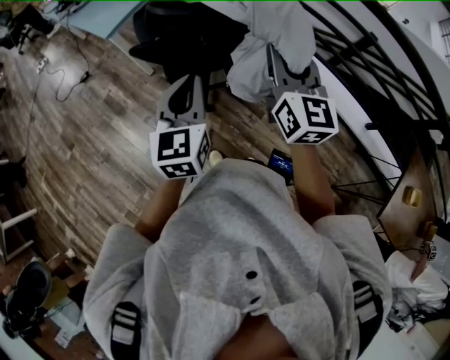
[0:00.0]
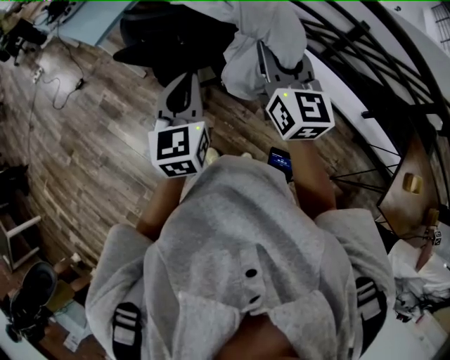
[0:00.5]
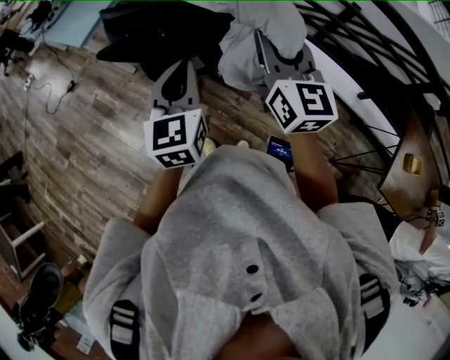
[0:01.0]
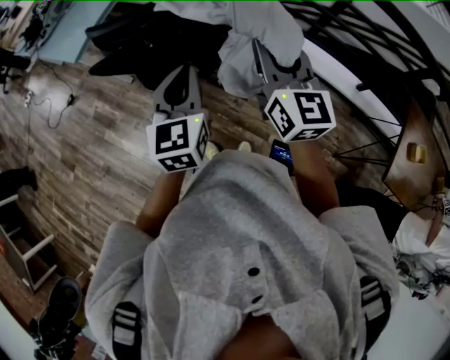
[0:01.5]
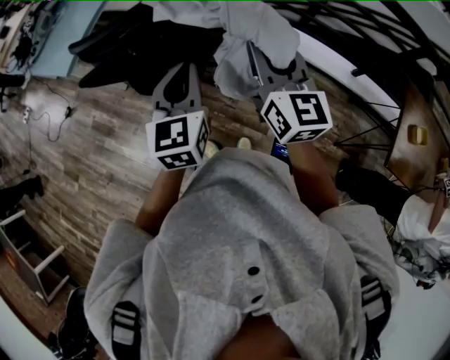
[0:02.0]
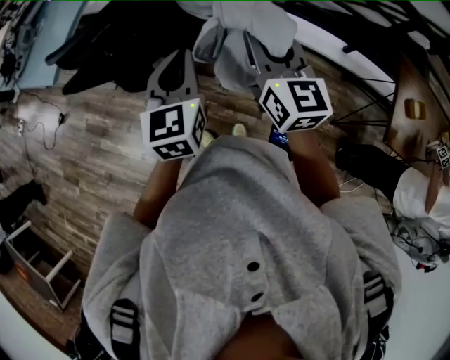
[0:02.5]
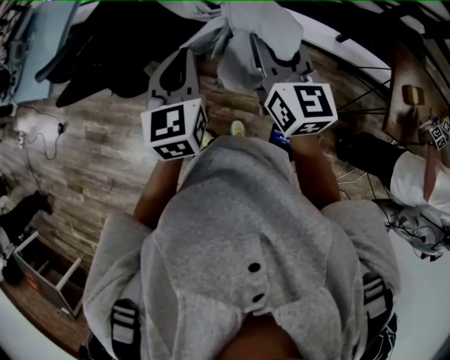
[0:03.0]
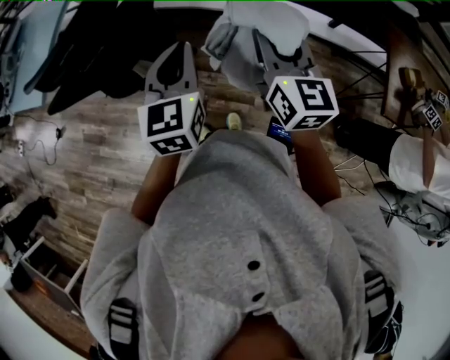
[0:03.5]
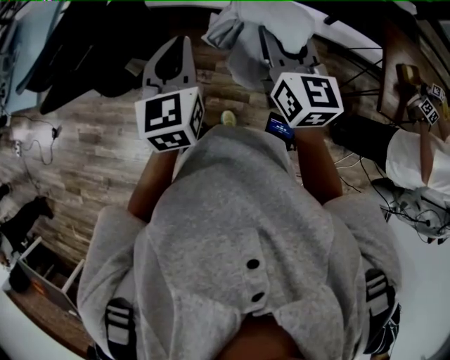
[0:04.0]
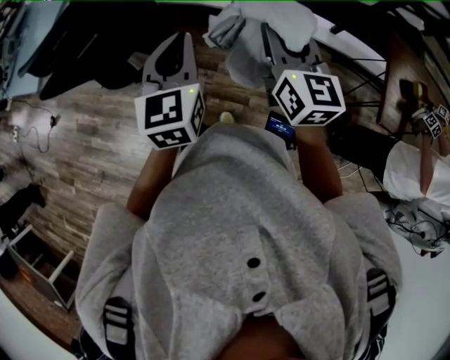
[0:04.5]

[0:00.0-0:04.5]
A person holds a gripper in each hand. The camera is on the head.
0:00.0 to 0:02.0: The right gripper goes about 15 cm to the right and backward, while the left gripper is displaced to the right by approximately 15 cm.
0:02.0 to 0:04.5: The two grippers go about 15 cm to the right.

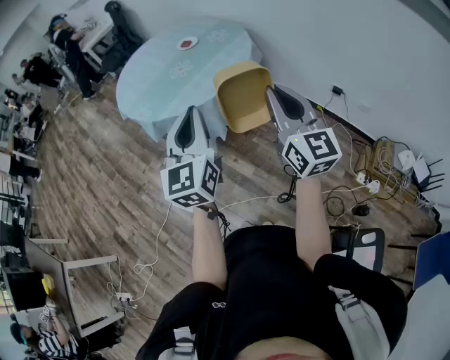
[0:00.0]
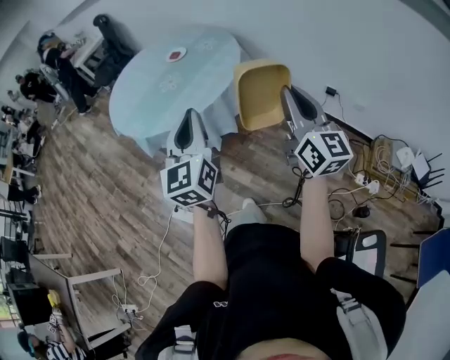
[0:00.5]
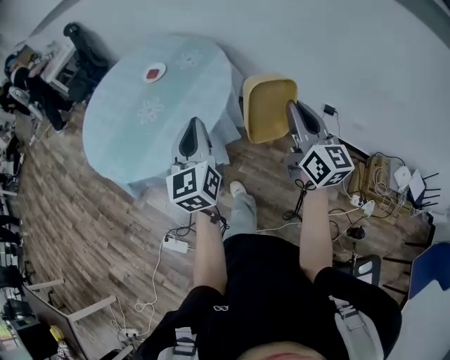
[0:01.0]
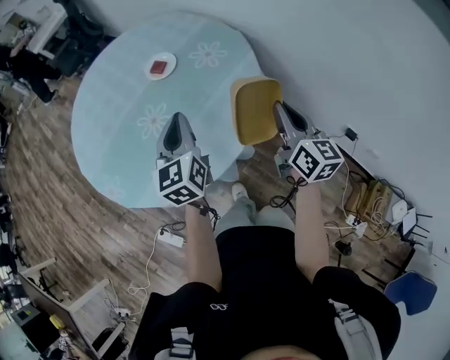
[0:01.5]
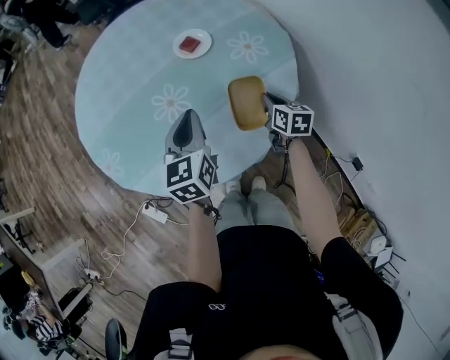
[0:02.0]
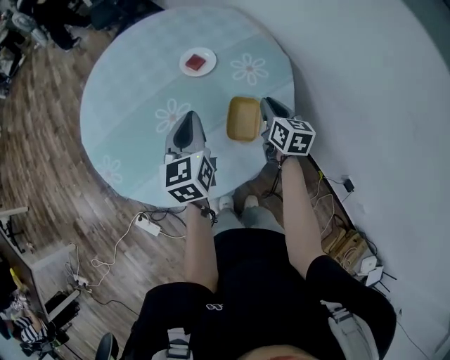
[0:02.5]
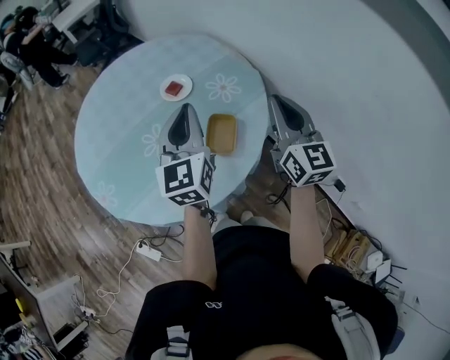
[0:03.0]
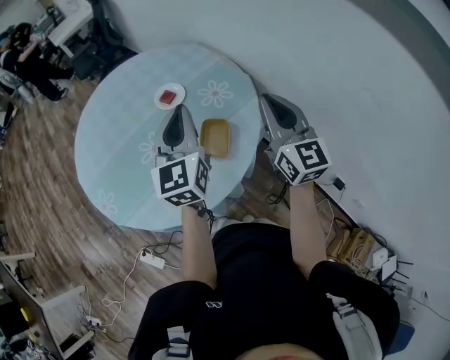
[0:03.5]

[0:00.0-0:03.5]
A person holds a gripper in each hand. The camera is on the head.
0:00.0 to 0:02.0: The two grippers travel together, forward, about 70 cm. The right gripper heads downward, covering approximately 35 cm, and points its fingers some 50 degrees further downward. The left gripper swivels some 30 degrees.
0:02.0 to 0:03.5: The left gripper is displaced upward and to the right by some 20 cm, and changes its angle by some 20 degrees. Meanwhile the right gripper shifts roughly 30 cm upward, and angles its fingers upward, by approximately 40 degrees.

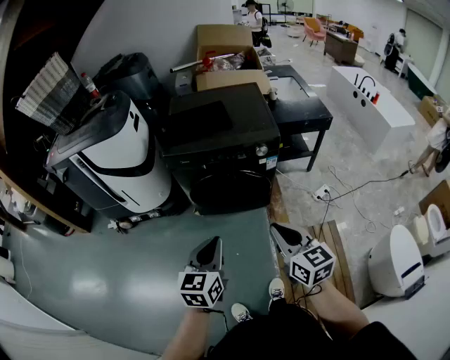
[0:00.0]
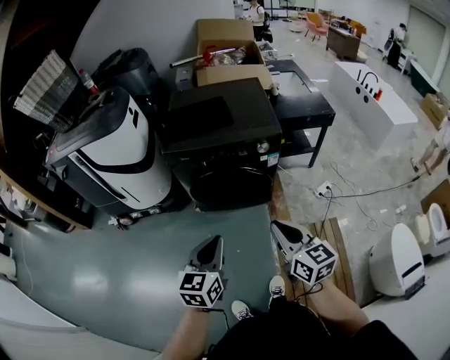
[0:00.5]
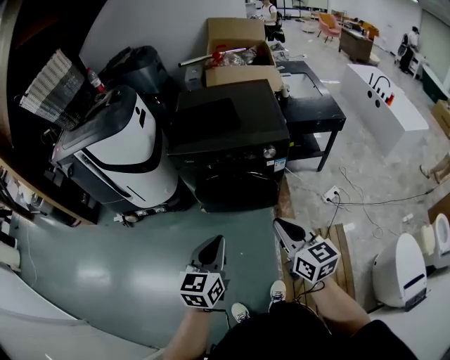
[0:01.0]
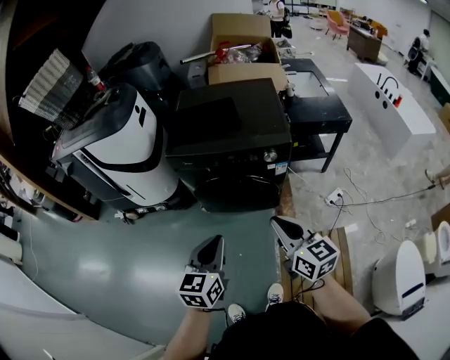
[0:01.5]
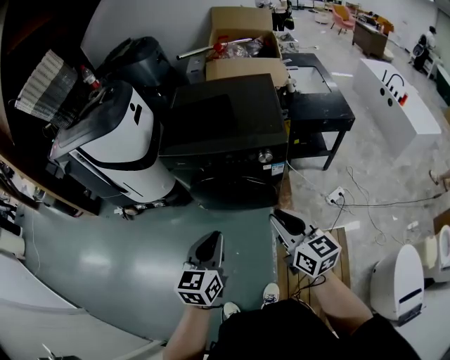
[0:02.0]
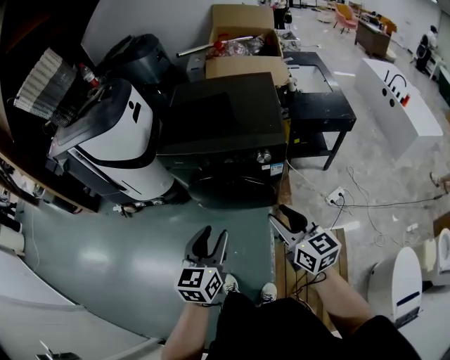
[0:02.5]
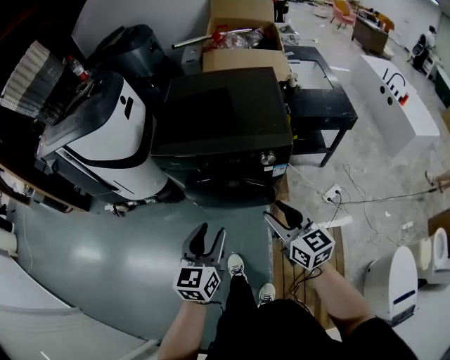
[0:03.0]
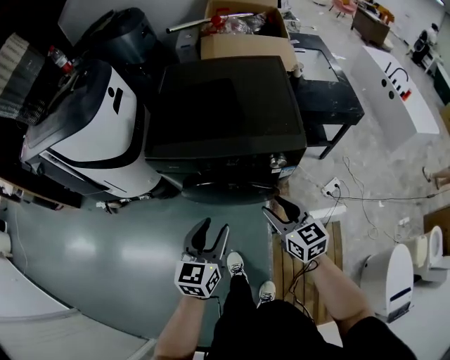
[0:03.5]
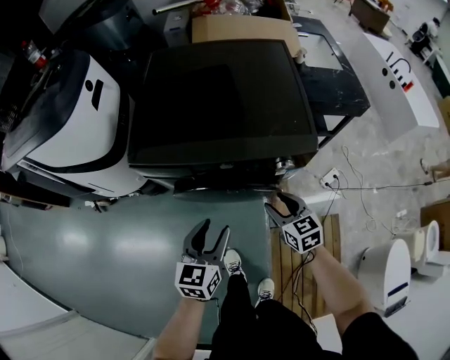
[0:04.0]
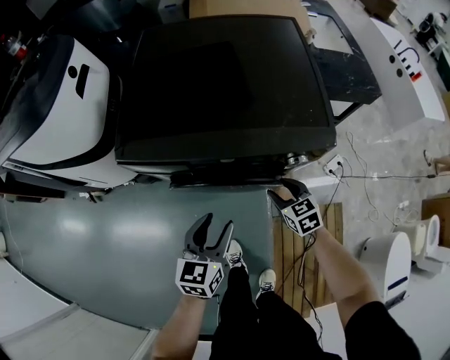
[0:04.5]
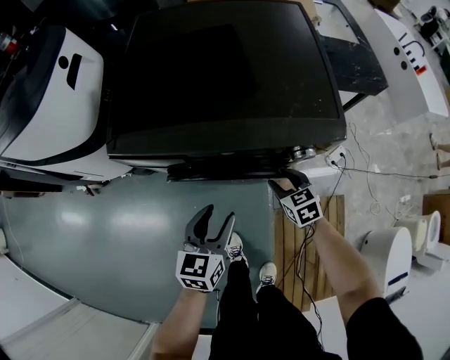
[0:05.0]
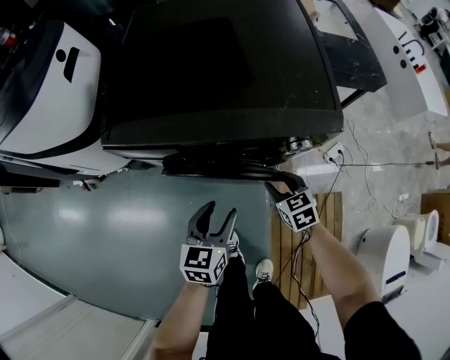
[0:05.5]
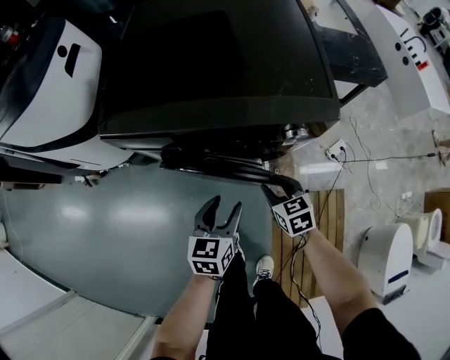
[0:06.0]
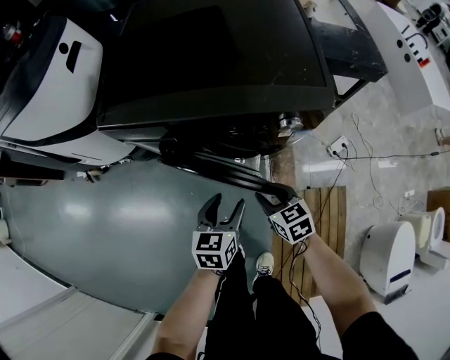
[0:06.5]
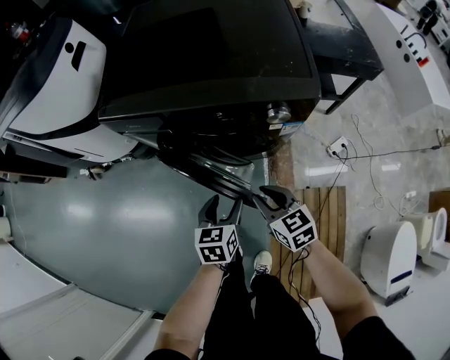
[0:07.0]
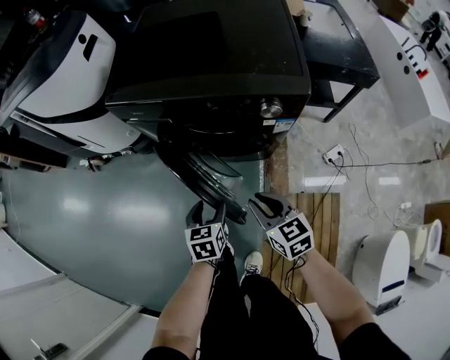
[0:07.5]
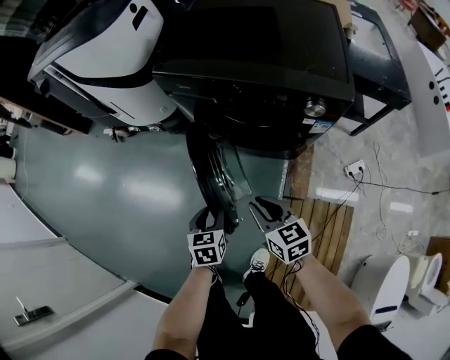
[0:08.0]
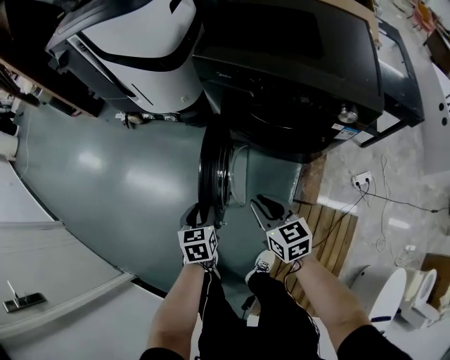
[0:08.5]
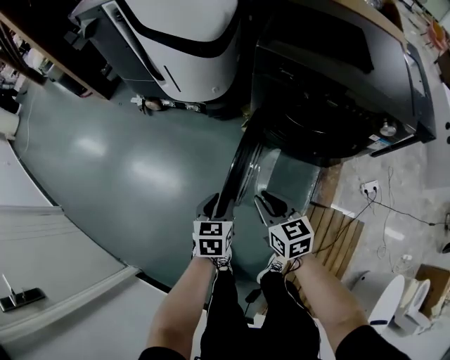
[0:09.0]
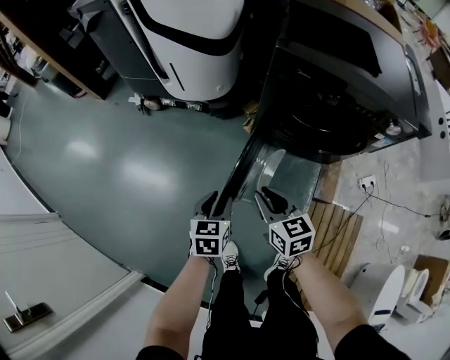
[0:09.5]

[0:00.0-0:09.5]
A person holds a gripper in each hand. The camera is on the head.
0:00.0 to 0:02.0: Both grippers move forward and to the right, some 15 cm.
0:02.0 to 0:04.0: The left gripper is displaced forward and downward by some 25 cm, and opens up. The right gripper shifts about 35 cm downward and forward, swivels about 30 degrees, and opens its fingers.
0:04.0 to 0:05.5: The two grippers go approximately 10 cm downward.
0:05.5 to 0:07.5: The left gripper heads backward and downward, covering some 15 cm, and changes its angle by some 20 degrees, while the right gripper moves backward and upward, roughly 20 cm, and closes.
0:07.5 to 0:09.5: Both grippers travel together to the left, approximately 40 cm. The left gripper closes.

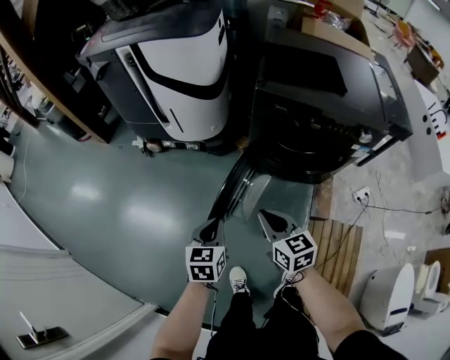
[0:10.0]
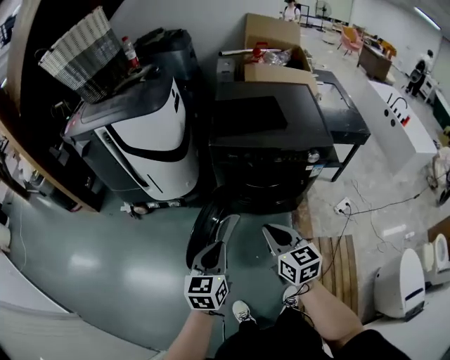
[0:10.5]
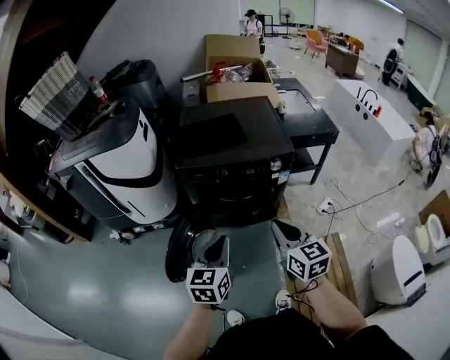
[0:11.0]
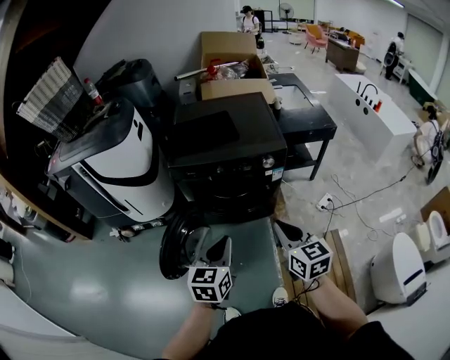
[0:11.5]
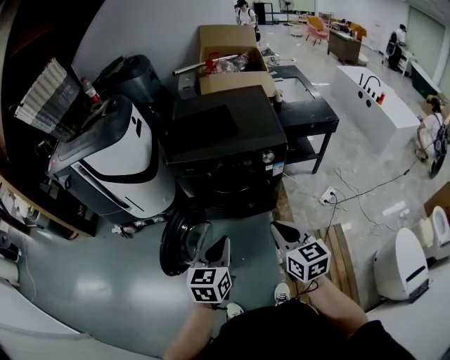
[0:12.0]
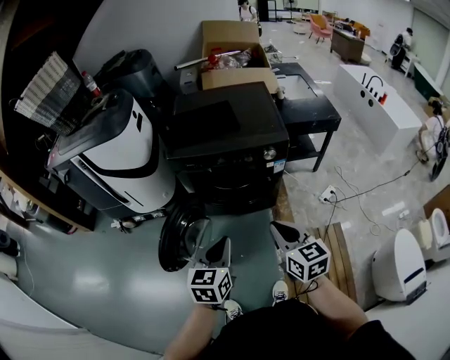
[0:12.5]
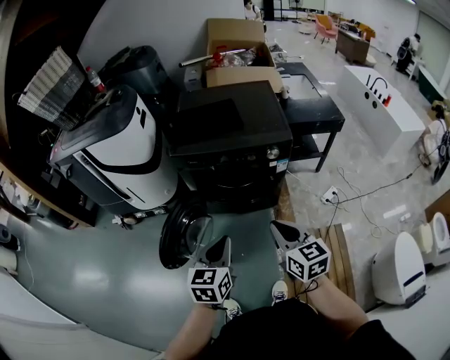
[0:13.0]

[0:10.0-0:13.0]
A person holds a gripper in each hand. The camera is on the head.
0:10.0 to 0:11.5: Both grippers move to the right and upward, about 35 cm. The right gripper turns by approximately 30 degrees, while the left gripper changes its angle by about 30 degrees.
0:11.5 to 0:13.0: There are only small adjustments of the grippers.

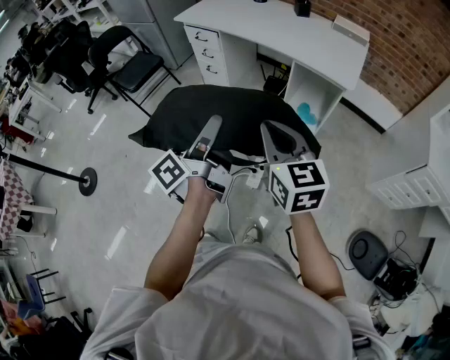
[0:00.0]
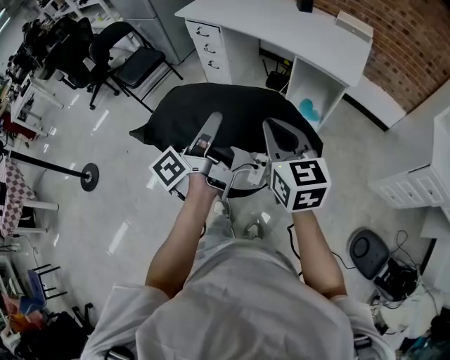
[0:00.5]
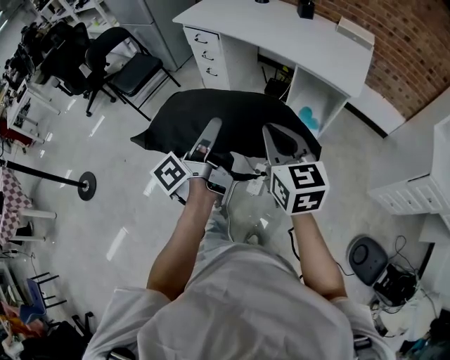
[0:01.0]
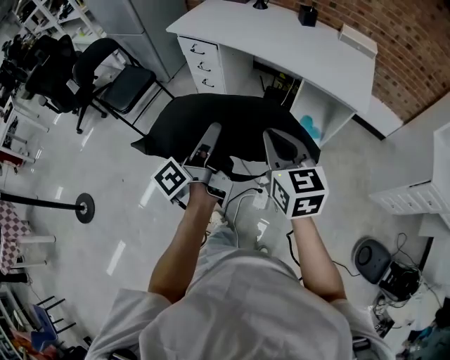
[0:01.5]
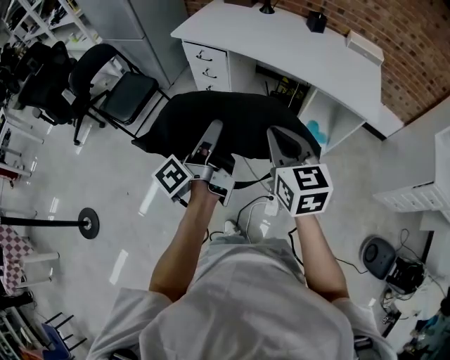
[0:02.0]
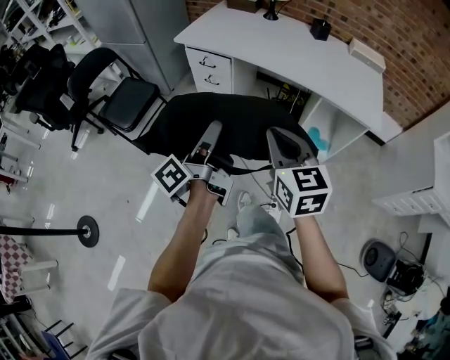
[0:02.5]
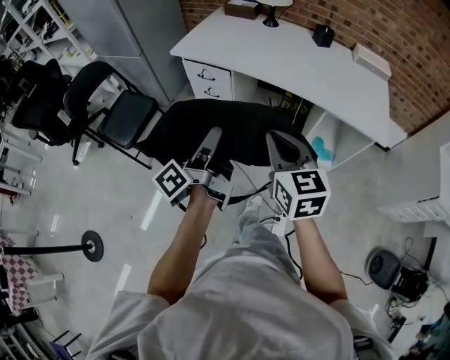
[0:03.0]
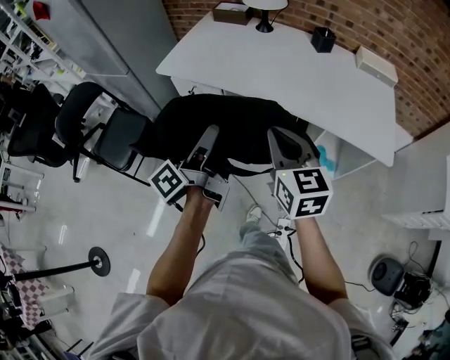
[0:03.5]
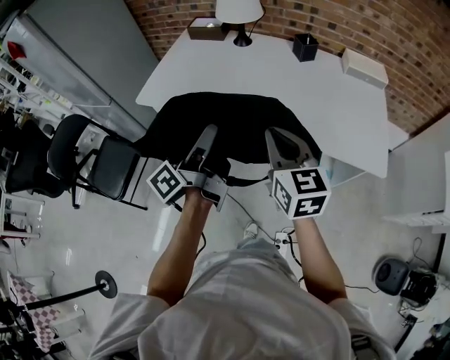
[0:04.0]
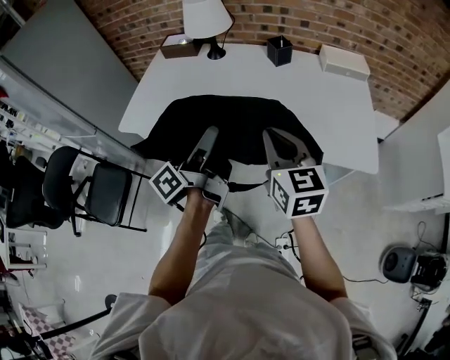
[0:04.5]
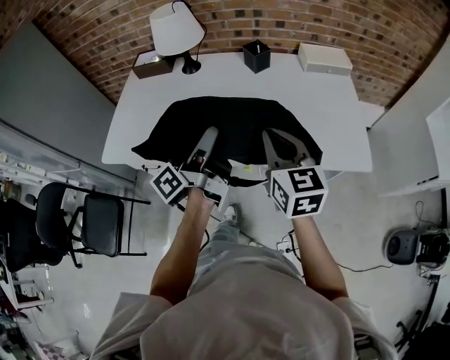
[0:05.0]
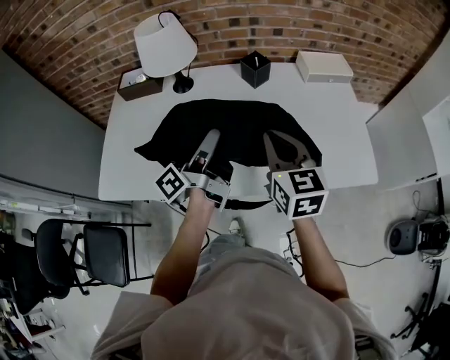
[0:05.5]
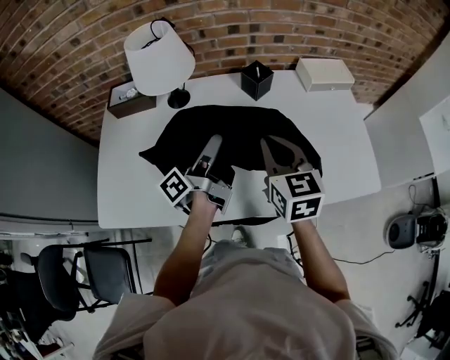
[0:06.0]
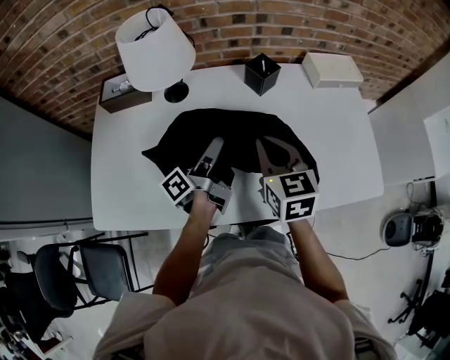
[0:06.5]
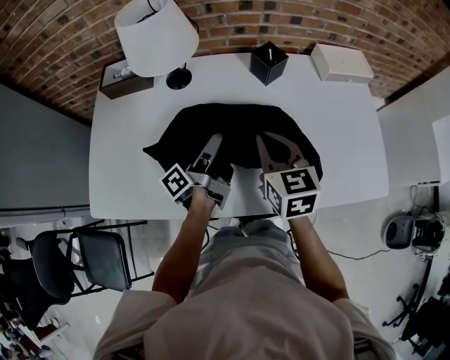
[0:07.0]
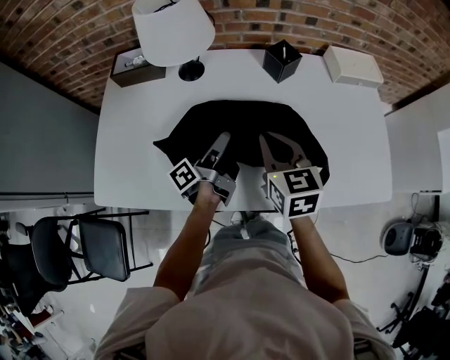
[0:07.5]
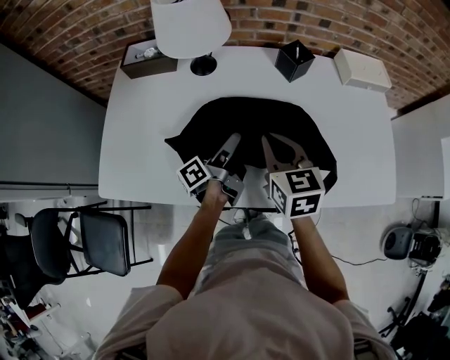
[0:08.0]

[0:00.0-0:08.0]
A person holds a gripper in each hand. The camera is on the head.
0:00.0 to 0:02.0: The right gripper moves approximately 30 cm.
0:02.0 to 0:04.0: The right gripper shifts by about 35 cm.
0:04.0 to 0:06.0: The right gripper ends up about 30 cm from where it was, and turns by about 30 degrees.
0:06.0 to 0:08.0: The right gripper moves downward, about 10 cm.
